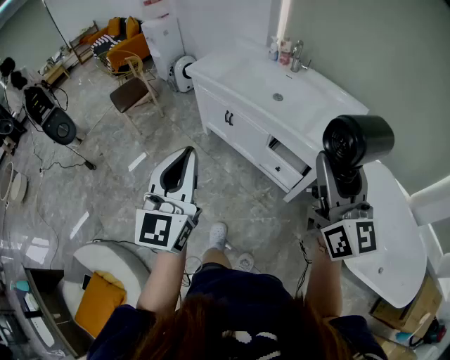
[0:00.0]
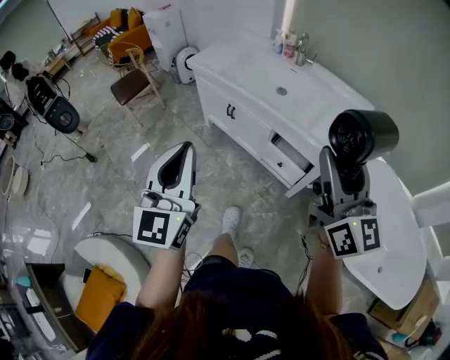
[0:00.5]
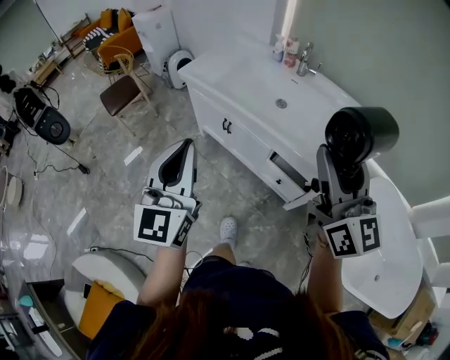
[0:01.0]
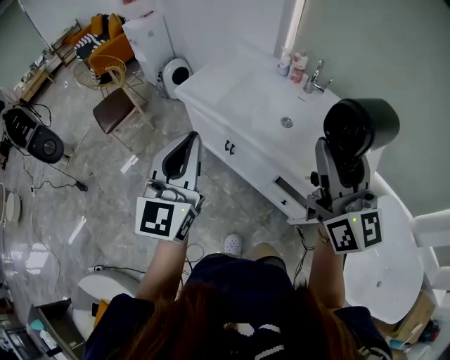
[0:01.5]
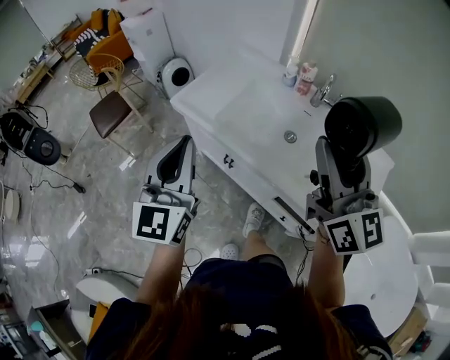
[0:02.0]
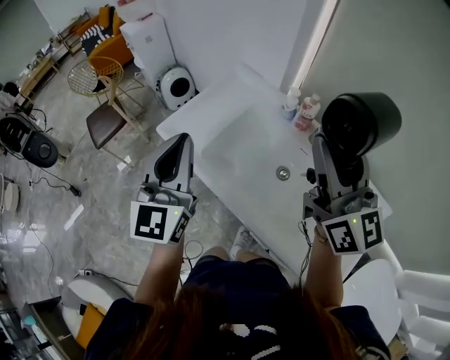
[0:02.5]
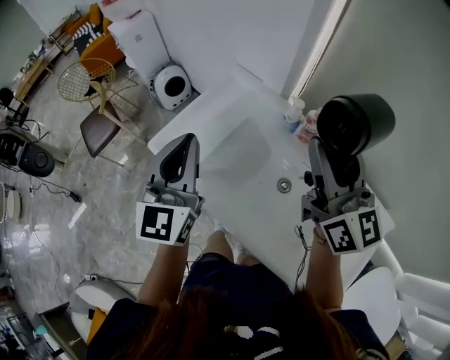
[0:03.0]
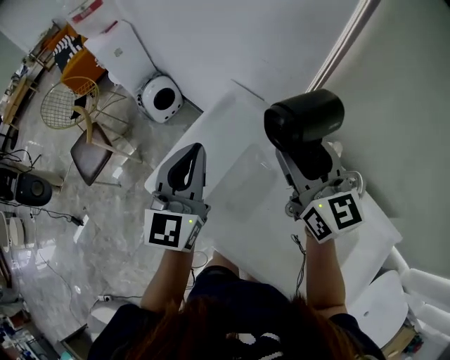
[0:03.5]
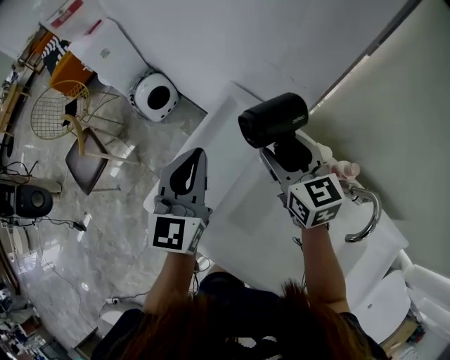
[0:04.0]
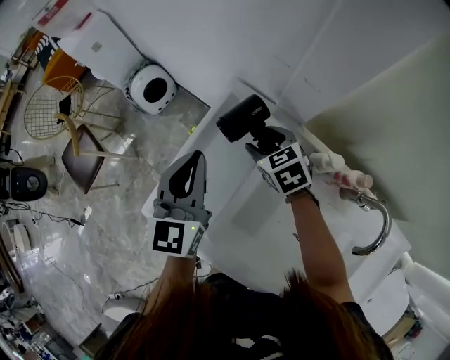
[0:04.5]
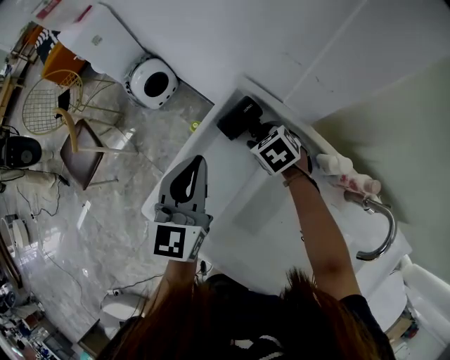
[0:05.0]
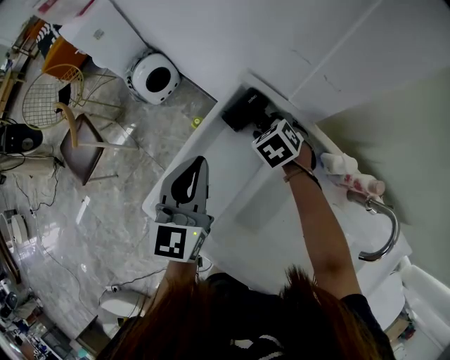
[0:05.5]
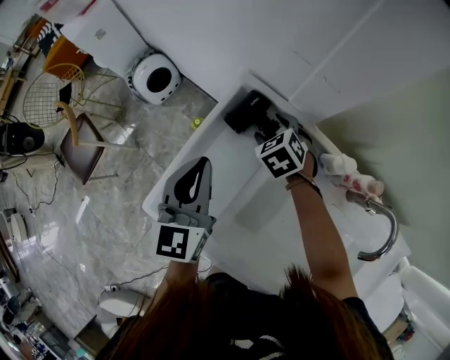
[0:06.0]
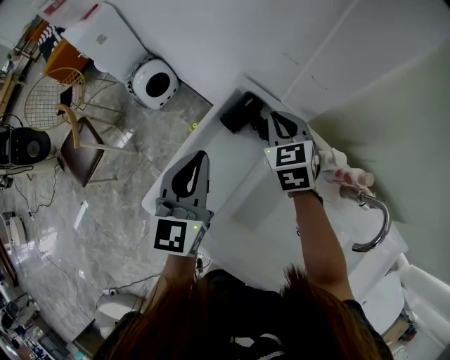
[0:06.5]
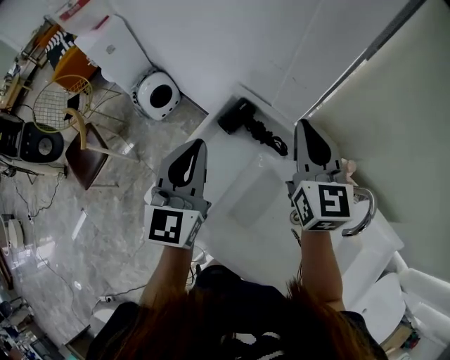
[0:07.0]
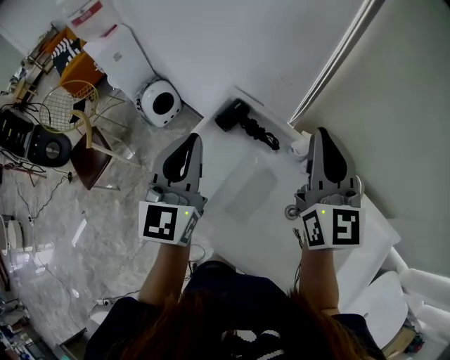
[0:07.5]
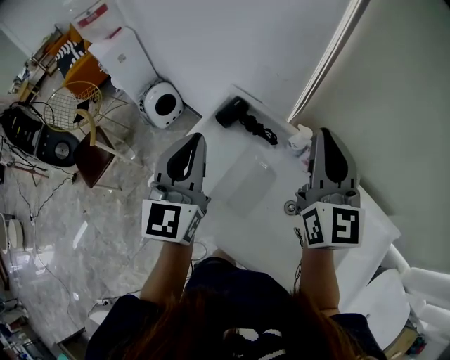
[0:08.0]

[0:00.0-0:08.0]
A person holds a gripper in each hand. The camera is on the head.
0:00.0 to 0:02.0: The pair of grippers is taken forward, roughly 50 cm.
0:02.0 to 0:04.0: The two grippers travel together, forward, about 60 cm. The right gripper angles its fingers downward, by approximately 40 degrees.
0:04.0 to 0:06.0: The right gripper moves downward and forward, roughly 20 cm, and tips its fingers downward by roughly 40 degrees; the left gripper shifts roughly 10 cm downward.
0:06.0 to 0:08.0: The left gripper shifts some 25 cm upward and backward, while the right gripper heads upward and backward, covering some 50 cm, tilts its fingers roughly 60 degrees upward, and closes.

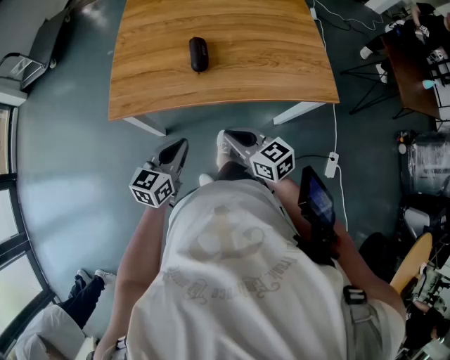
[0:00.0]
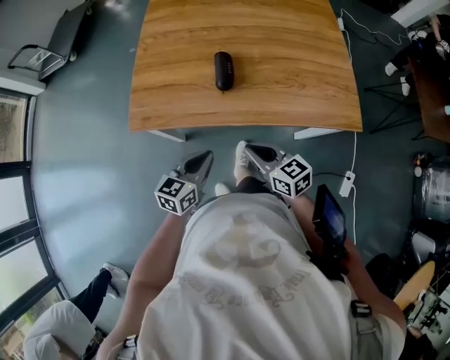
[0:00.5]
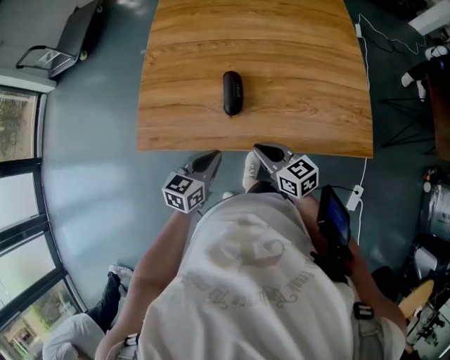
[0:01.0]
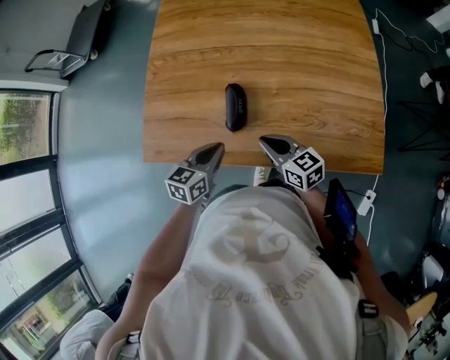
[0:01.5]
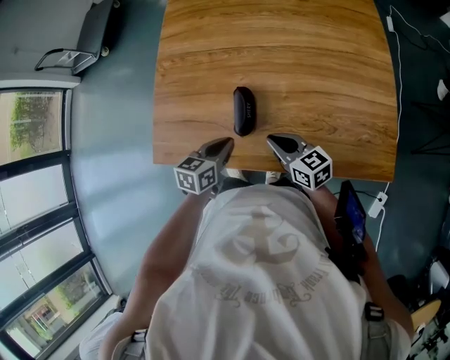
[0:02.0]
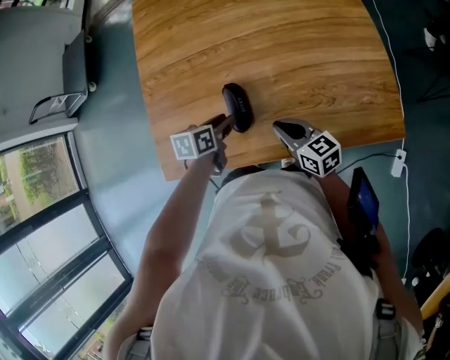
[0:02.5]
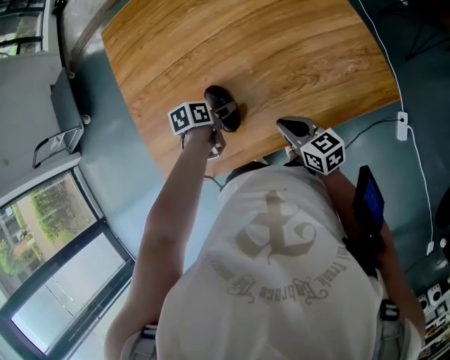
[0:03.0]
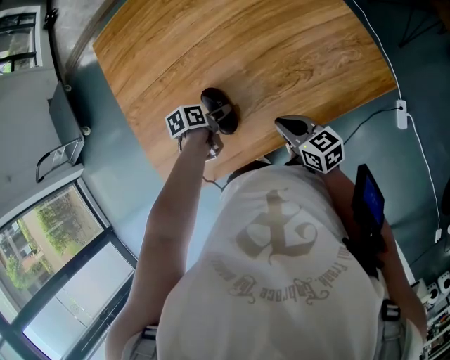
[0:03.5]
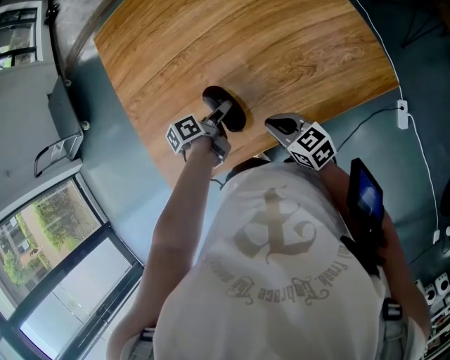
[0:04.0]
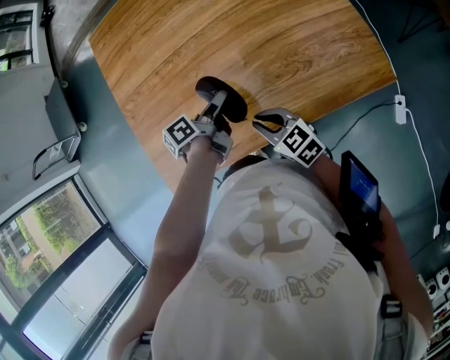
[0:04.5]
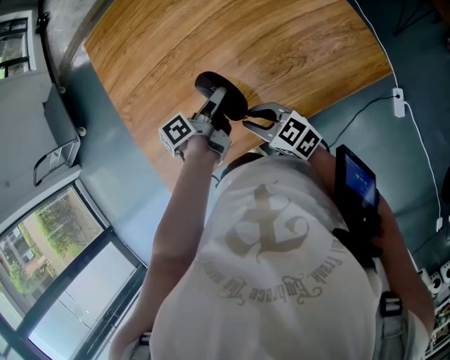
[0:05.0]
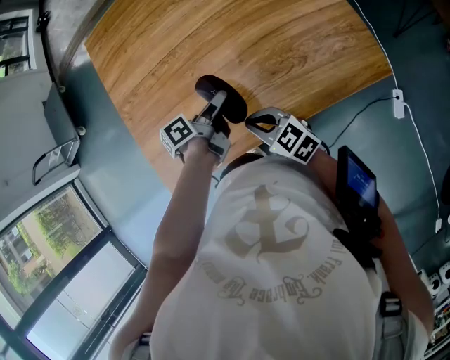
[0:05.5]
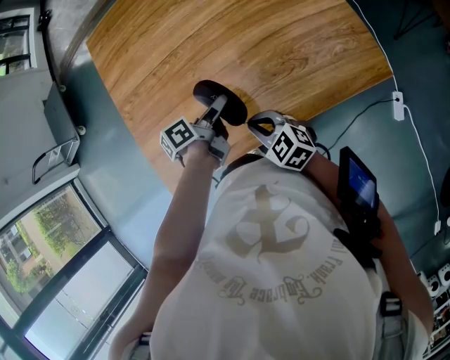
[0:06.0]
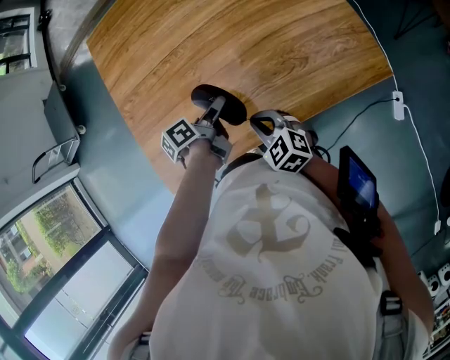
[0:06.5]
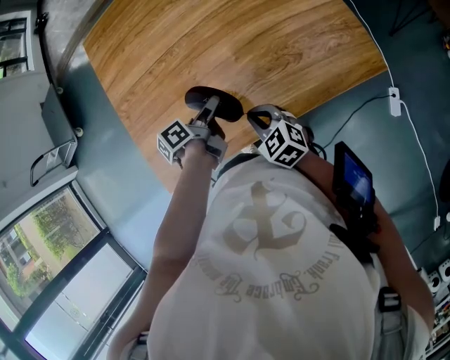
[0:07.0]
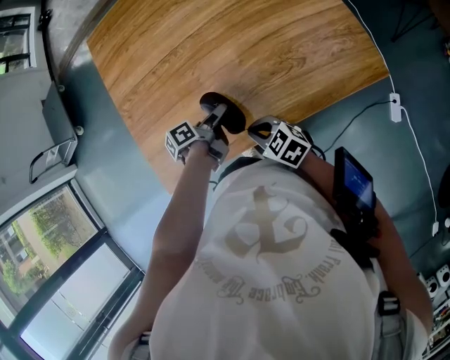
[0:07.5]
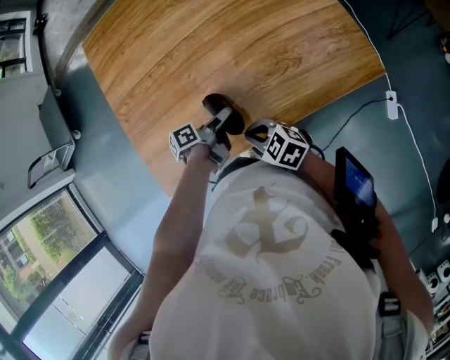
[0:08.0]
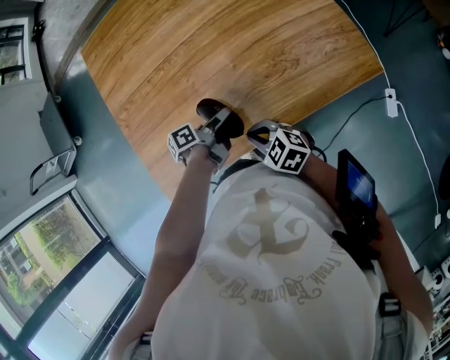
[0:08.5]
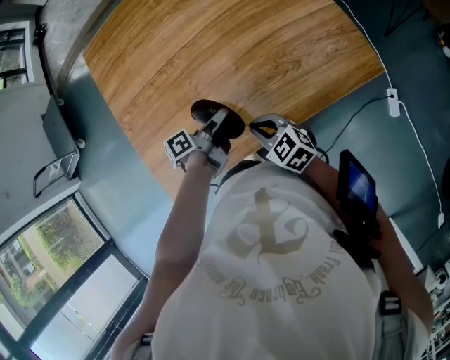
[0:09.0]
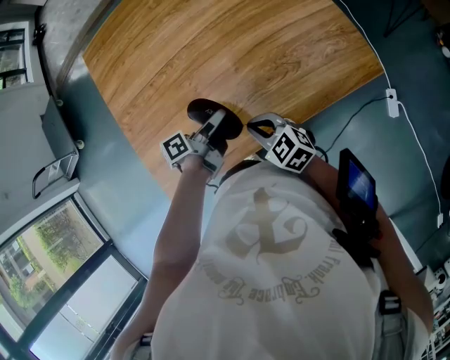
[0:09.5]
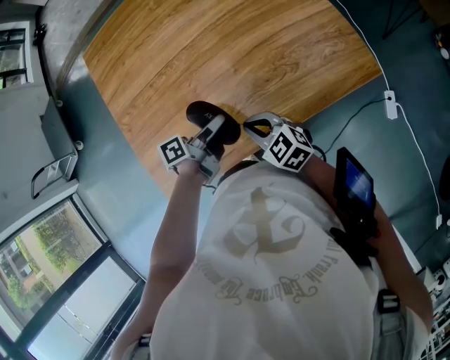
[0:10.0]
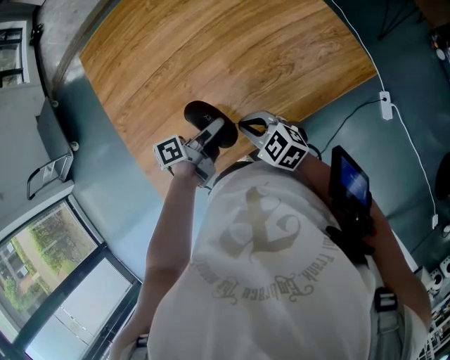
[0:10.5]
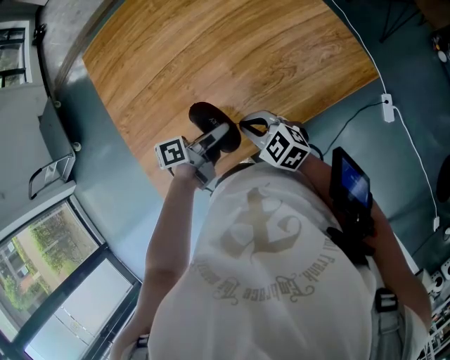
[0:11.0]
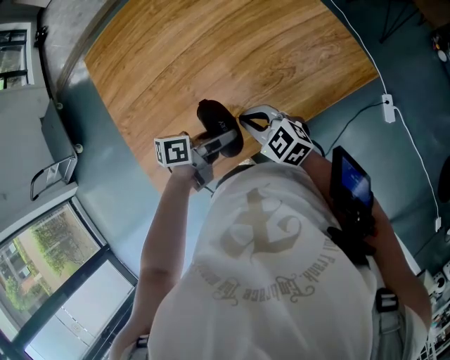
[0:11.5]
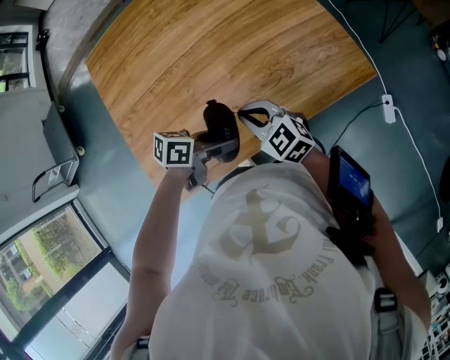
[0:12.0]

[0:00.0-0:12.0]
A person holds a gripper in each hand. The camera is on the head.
0:00.0 to 0:02.0: The right gripper shifts by some 25 cm.
0:04.0 to 0:06.0: The right gripper turns by roughly 30 degrees.
0:08.0 to 0:10.0: The right gripper shifts by some 5 cm.
0:10.0 to 0:12.0: The right gripper shifts by about 5 cm.

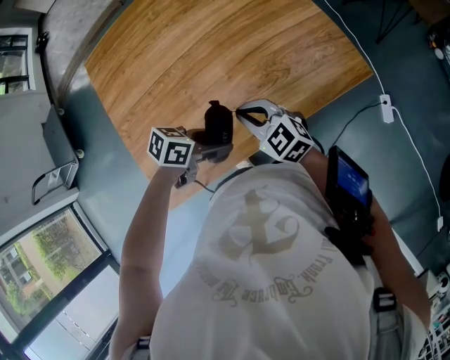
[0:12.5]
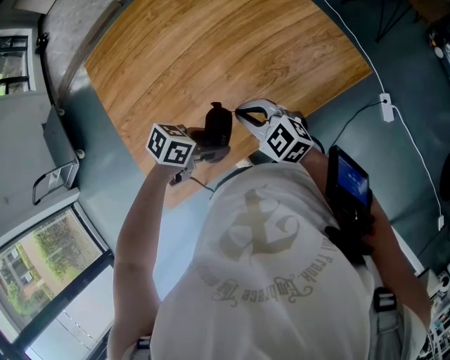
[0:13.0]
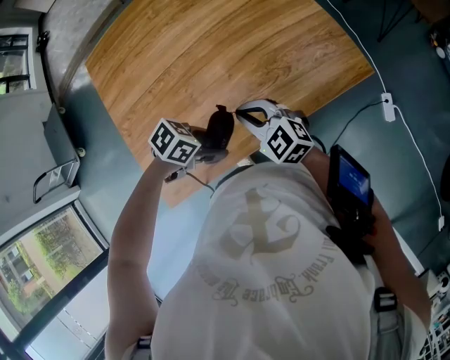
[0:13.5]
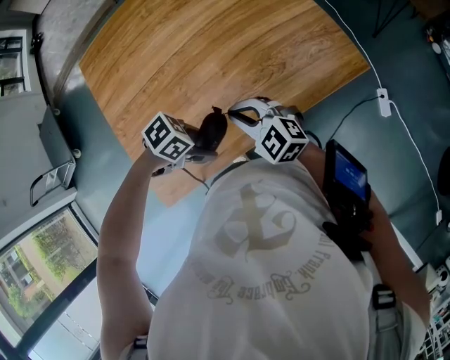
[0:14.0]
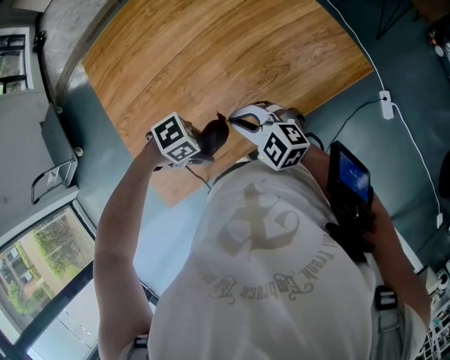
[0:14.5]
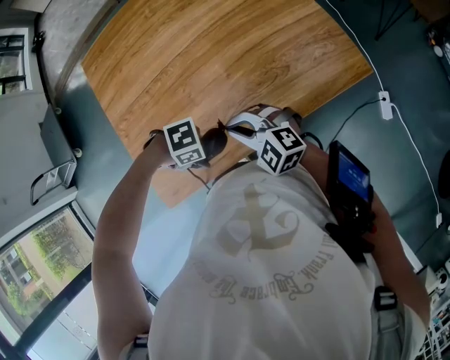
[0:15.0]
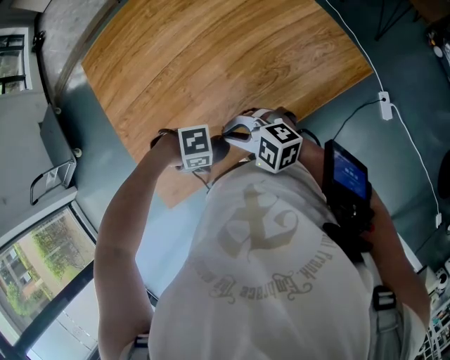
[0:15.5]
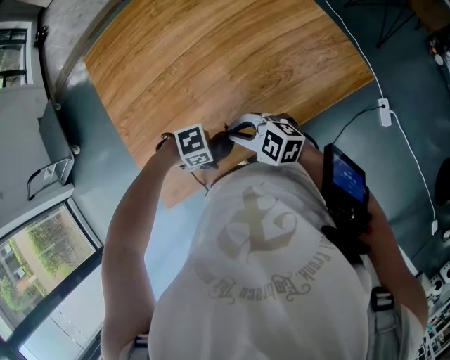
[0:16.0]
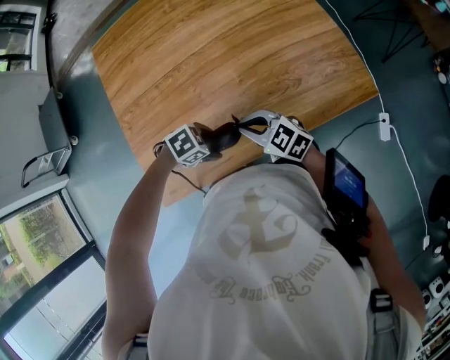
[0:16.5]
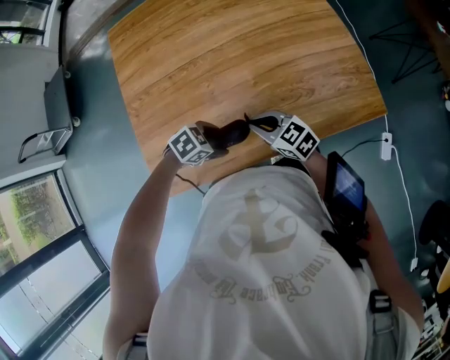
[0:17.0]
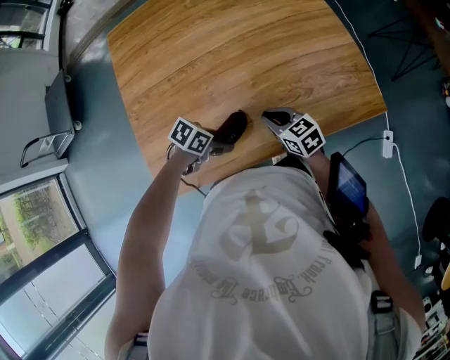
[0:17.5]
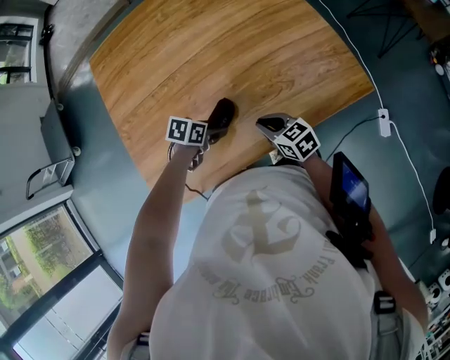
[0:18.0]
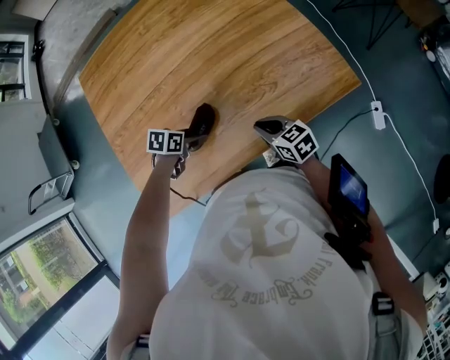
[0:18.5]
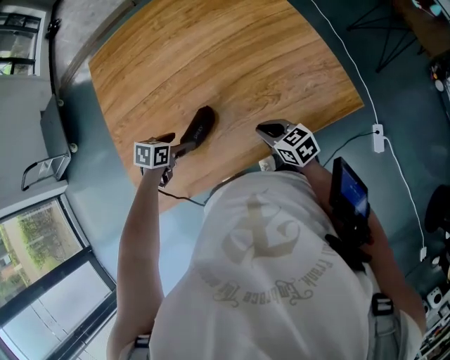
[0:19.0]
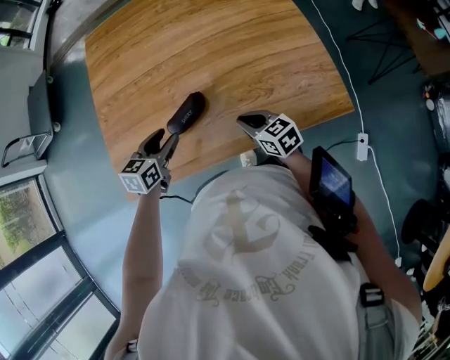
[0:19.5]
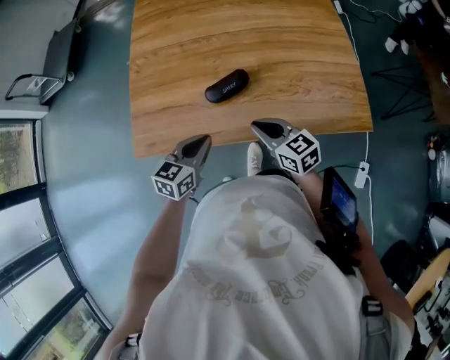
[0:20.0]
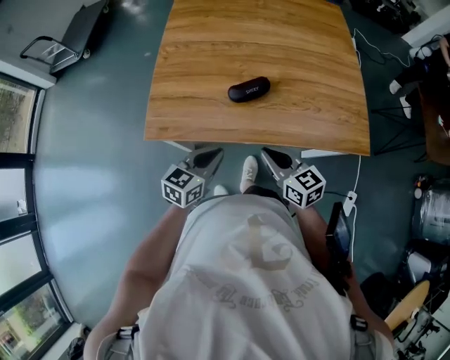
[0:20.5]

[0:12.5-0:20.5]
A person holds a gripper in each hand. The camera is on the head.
0:14.5 to 0:16.5: The right gripper rotates about 20 degrees.
0:16.5 to 0:18.5: The right gripper moves roughly 15 cm, and turns by approximately 30 degrees.
0:18.5 to 0:20.5: The right gripper ends up about 20 cm from where it was, and changes its angle by about 20 degrees.
